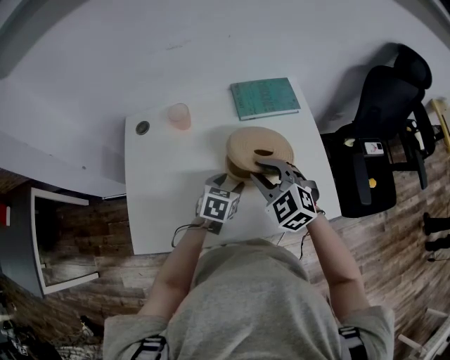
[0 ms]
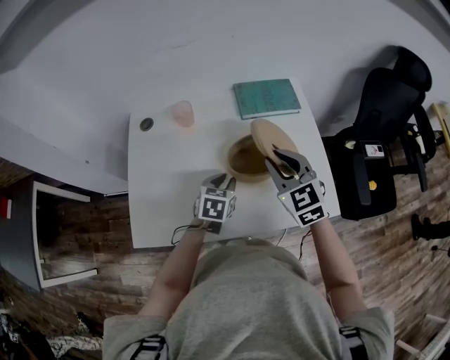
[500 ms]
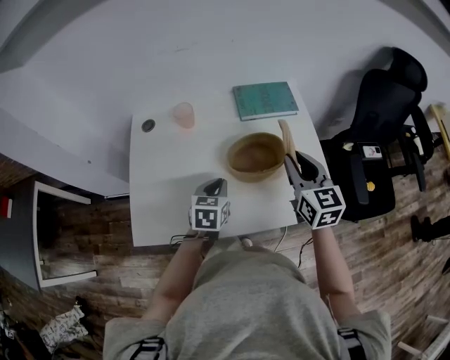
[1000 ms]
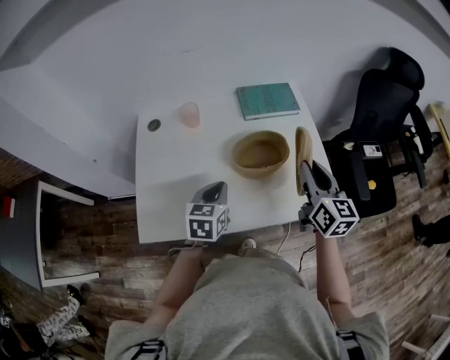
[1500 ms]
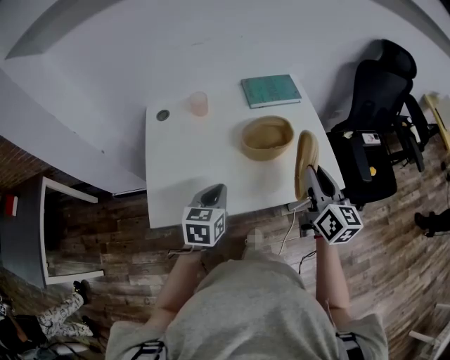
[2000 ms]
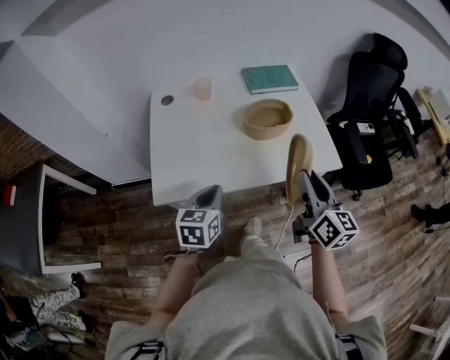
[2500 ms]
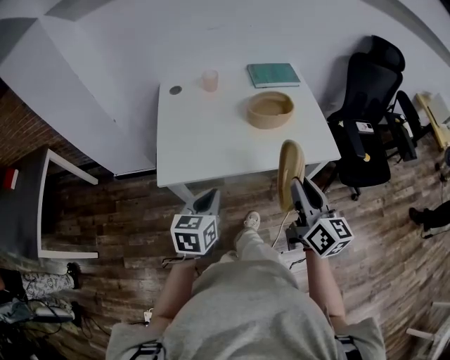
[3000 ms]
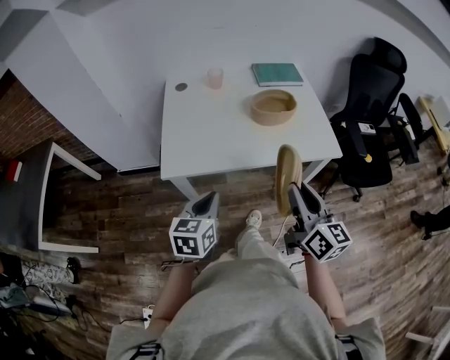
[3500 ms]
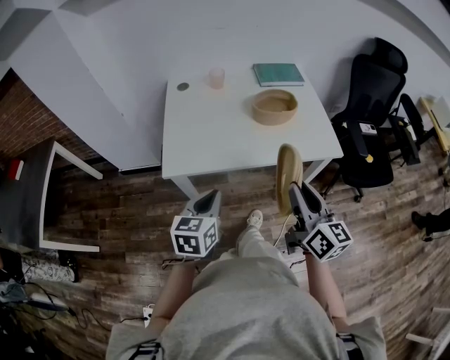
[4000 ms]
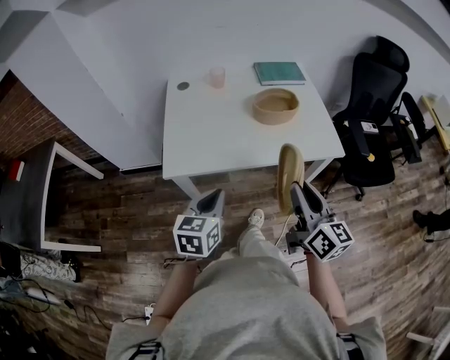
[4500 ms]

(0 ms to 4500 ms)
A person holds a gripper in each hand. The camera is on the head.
0 ms - 2000 ms: The right gripper shifts some 20 cm backward, to the right and upward, and twists approximately 60 degrees clockwise, seen from behind. The left gripper goes approximately 20 cm backward, upward and to the left, and closes up.
2000 ms - 4500 ms: The two grippers go roughly 25 cm backward.

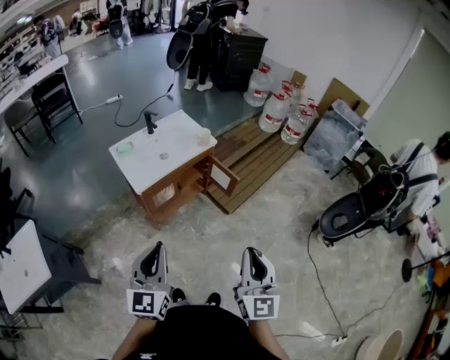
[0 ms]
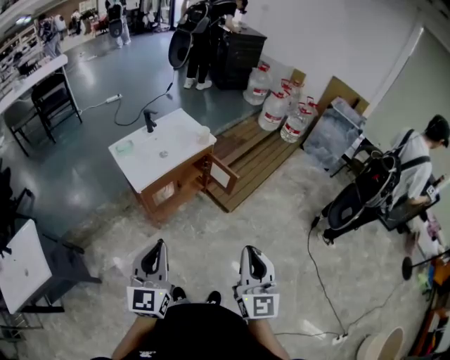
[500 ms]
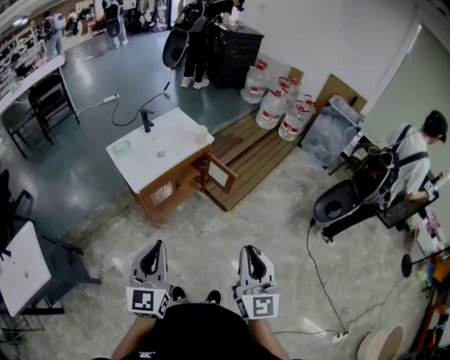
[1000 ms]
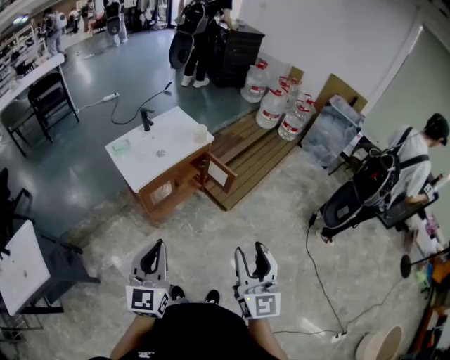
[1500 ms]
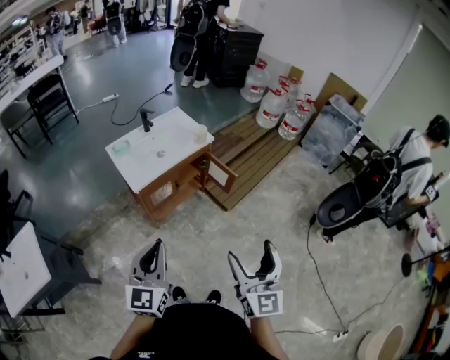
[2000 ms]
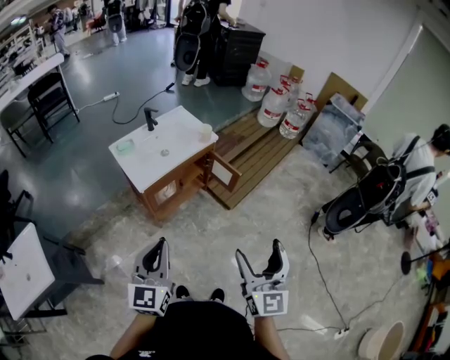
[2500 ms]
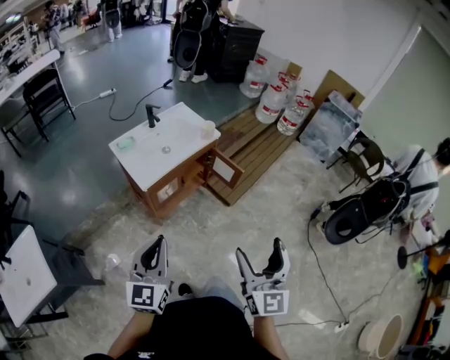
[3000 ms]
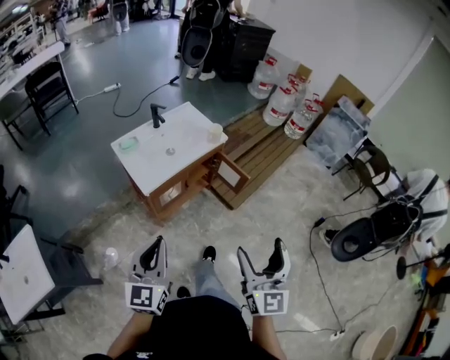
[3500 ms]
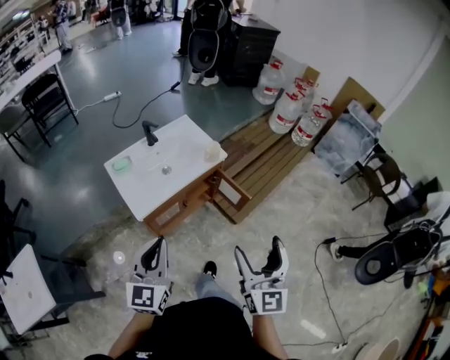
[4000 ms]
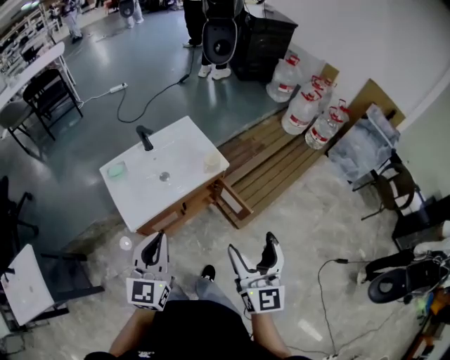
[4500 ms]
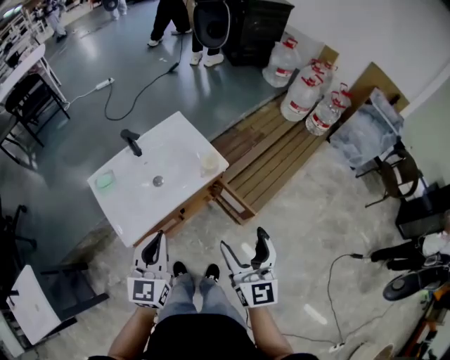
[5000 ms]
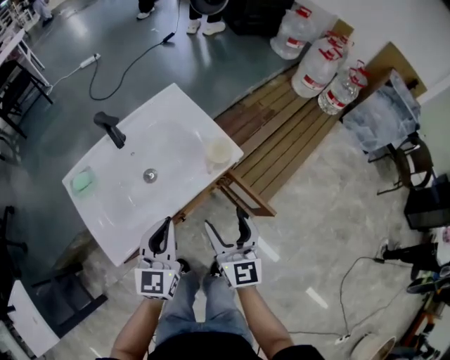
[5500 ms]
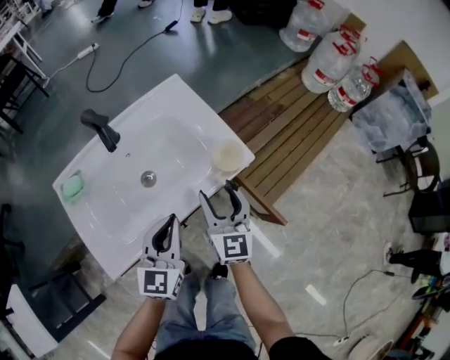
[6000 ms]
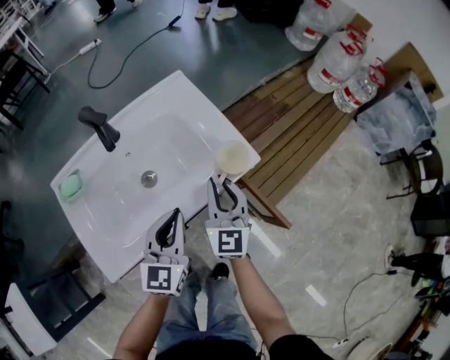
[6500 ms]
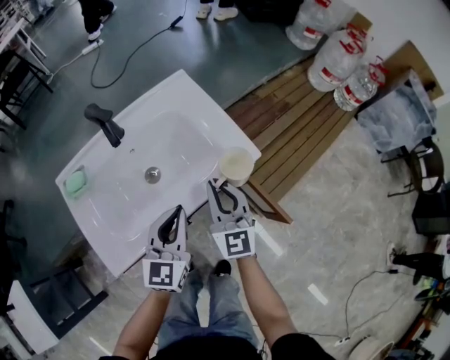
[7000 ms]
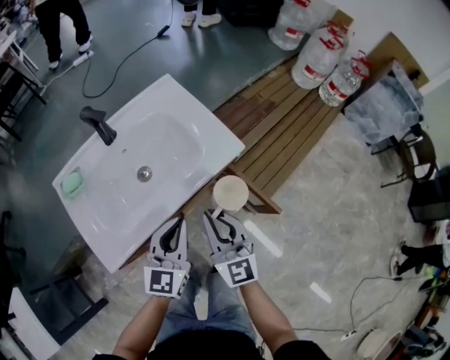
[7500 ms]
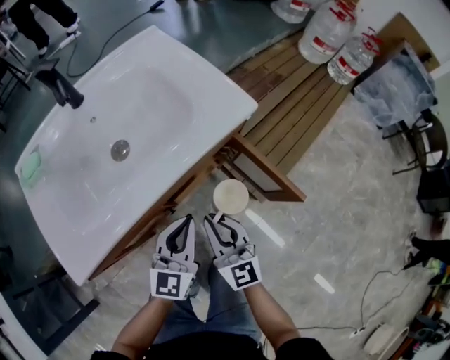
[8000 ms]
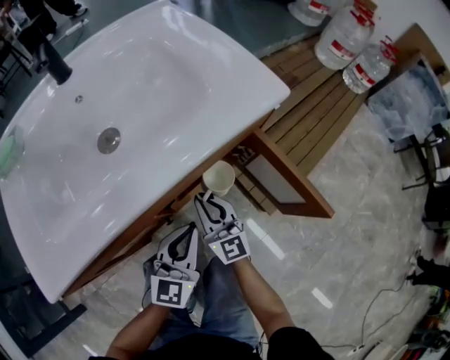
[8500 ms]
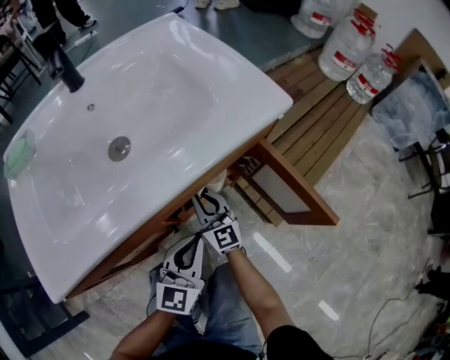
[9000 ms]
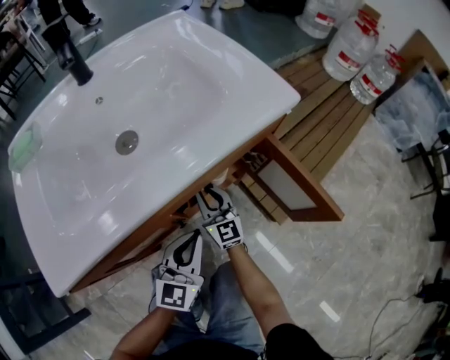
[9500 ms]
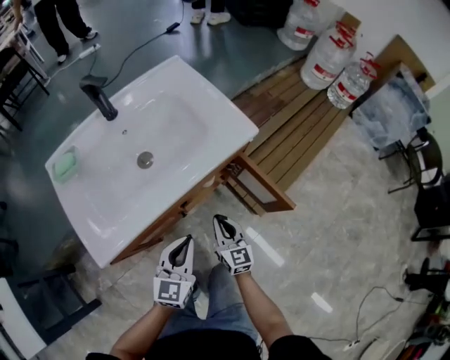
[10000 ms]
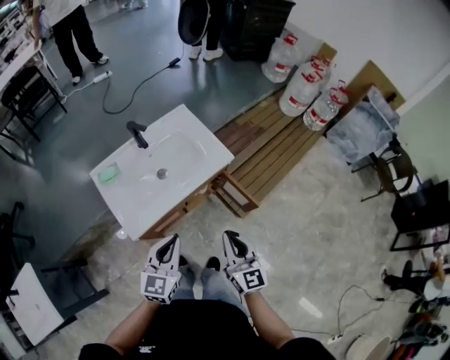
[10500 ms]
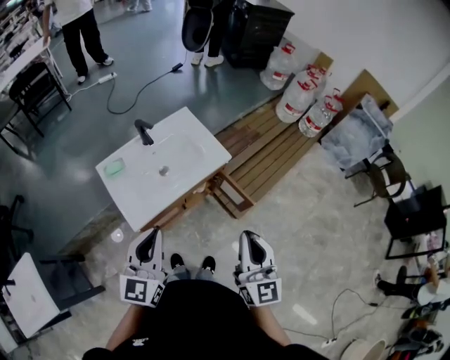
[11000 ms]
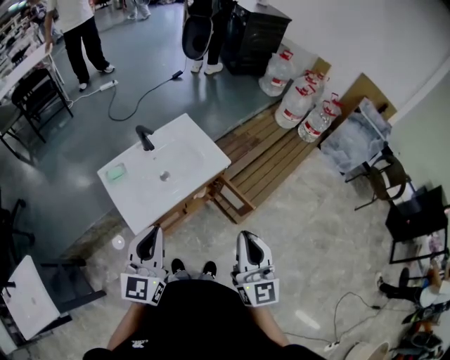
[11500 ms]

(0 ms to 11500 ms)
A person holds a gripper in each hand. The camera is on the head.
0 ms - 2000 ms: The right gripper opens.
2000 ms - 4000 ms: The grippers both shift forward by some 20 cm.
4000 ms - 6000 ms: The two grippers go roughly 50 cm forward and downward.
6000 ms - 7500 ms: The left gripper moves approximately 5 cm; the right gripper is displaced backward by some 10 cm, and closes.
7500 ms - 9500 ms: The grippers both shift downward by approximately 35 cm.
9500 ms - 11500 ms: The left gripper moves upward, about 60 cm, while the right gripper shifts about 70 cm upward and backward.

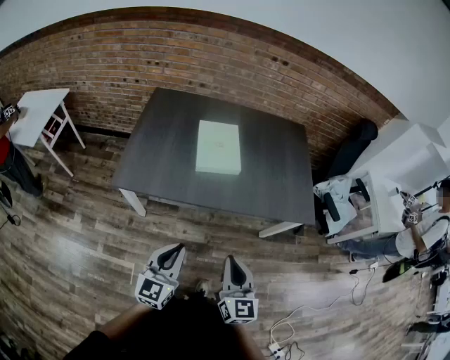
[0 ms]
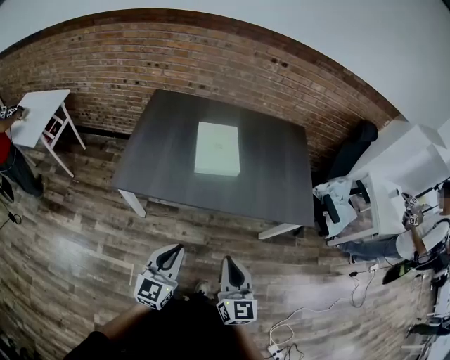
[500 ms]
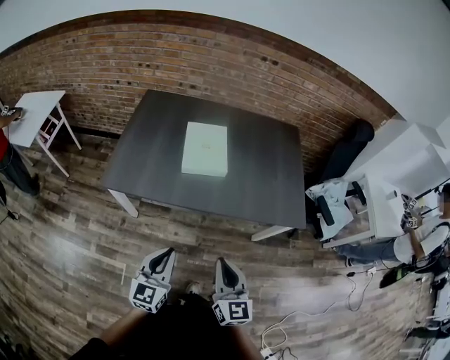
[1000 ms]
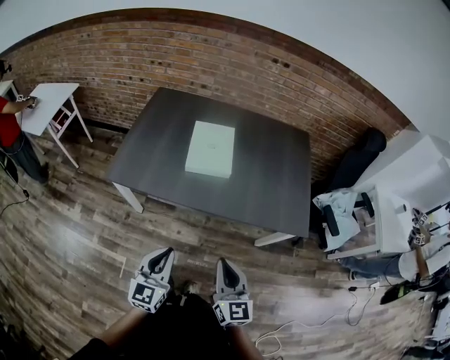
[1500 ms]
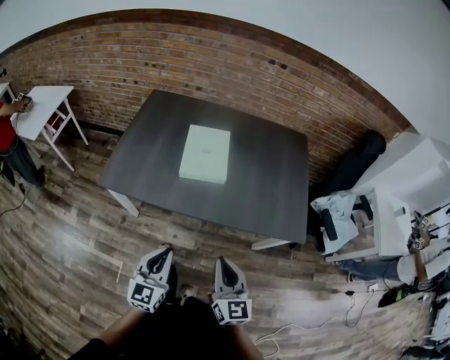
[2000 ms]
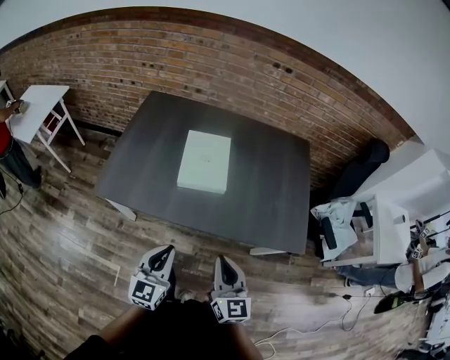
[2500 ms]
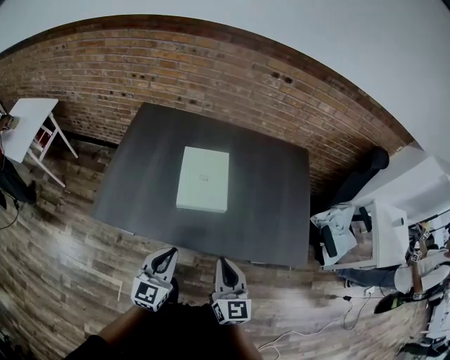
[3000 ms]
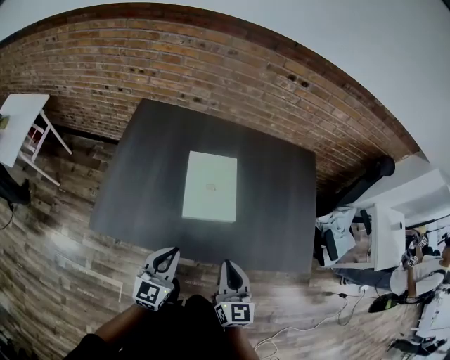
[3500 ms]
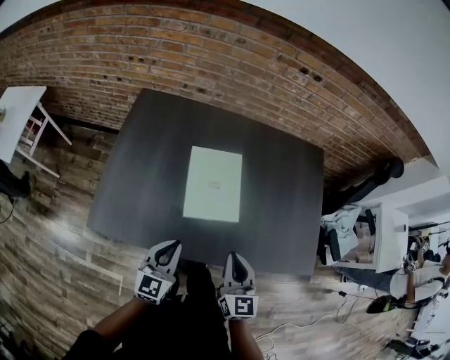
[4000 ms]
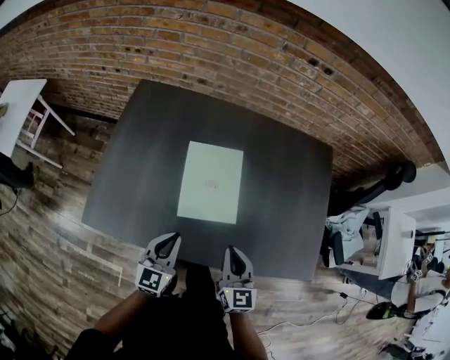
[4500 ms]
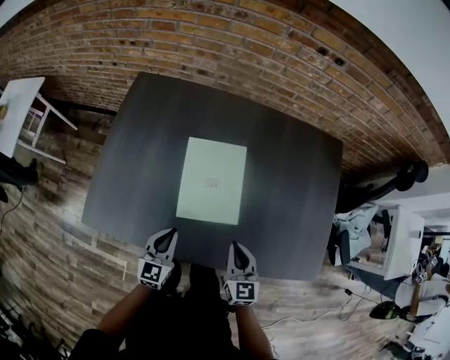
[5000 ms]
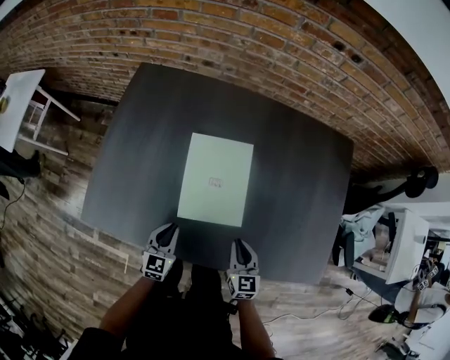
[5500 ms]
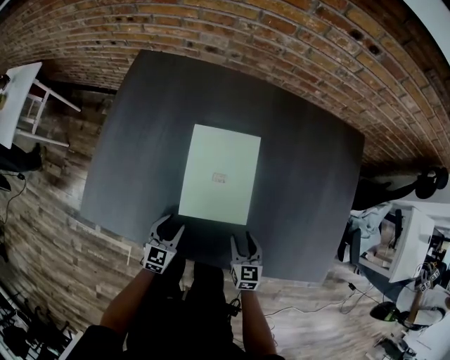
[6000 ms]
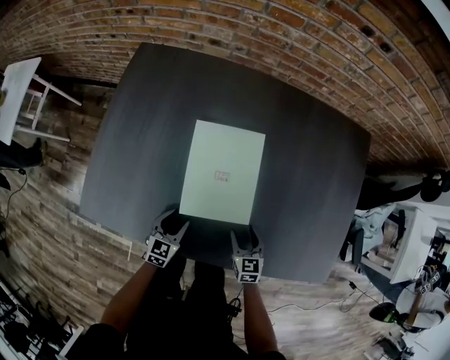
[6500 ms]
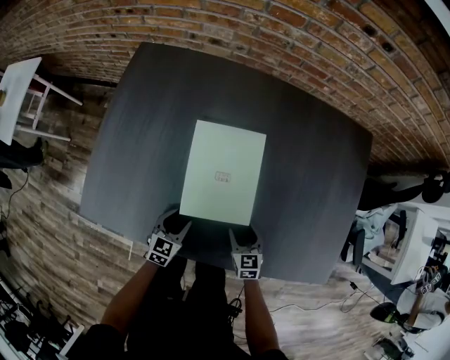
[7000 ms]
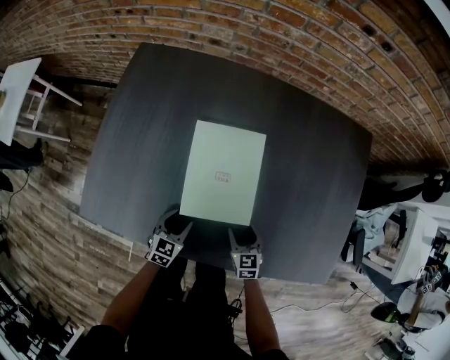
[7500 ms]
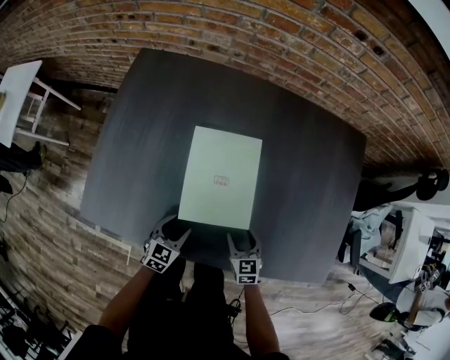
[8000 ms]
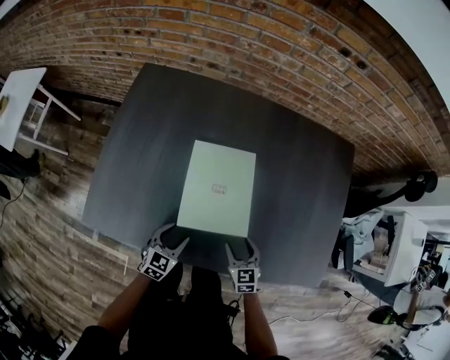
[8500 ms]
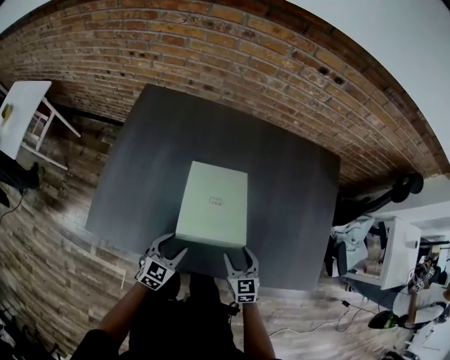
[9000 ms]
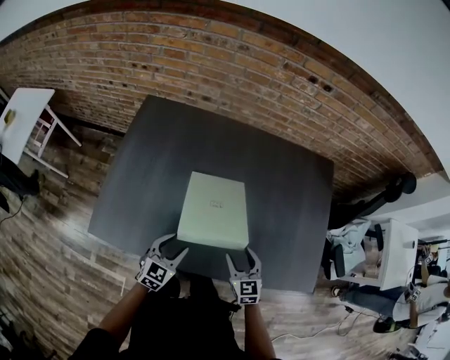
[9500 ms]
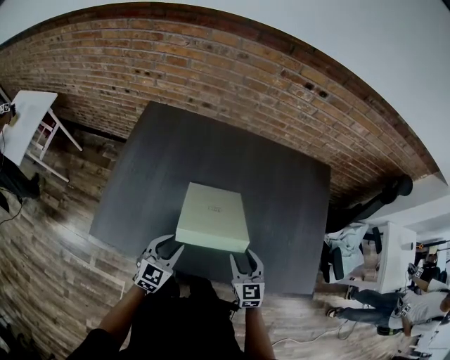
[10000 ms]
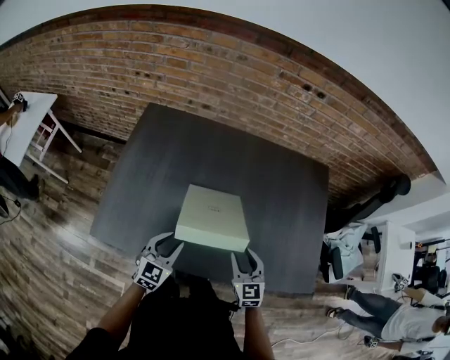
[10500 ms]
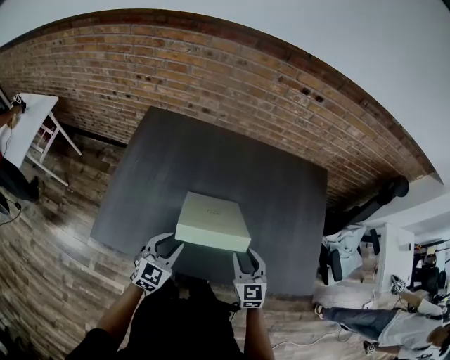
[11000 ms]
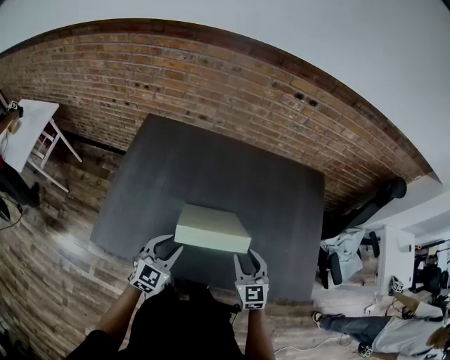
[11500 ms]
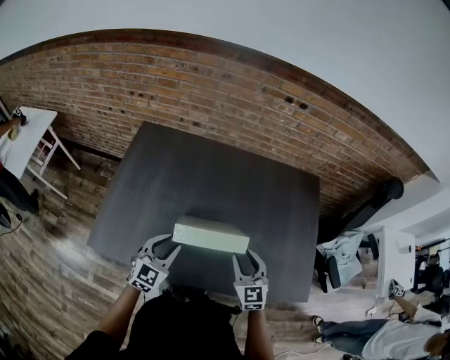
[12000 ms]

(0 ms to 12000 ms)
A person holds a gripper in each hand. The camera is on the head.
0 ms - 2000 ms: The right gripper is displaced to the right and forward by some 10 cm. The left gripper moves to the right, some 10 cm.
2000 ms - 4000 ms: The two grippers go approximately 30 cm forward.
4000 ms - 6000 ms: The grippers both shift downward by about 25 cm. The right gripper turns by about 30 degrees, and opens its fingers. The left gripper turns by approximately 20 degrees, and opens up.
6000 ms - 8000 ms: The grippers move only a little.
8000 ms - 10000 ms: Both grippers move upward, some 20 cm.
10000 ms - 12000 ms: The two grippers go roughly 5 cm upward.
